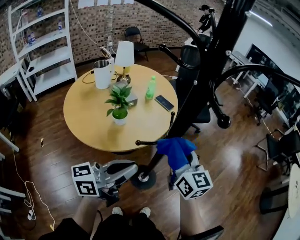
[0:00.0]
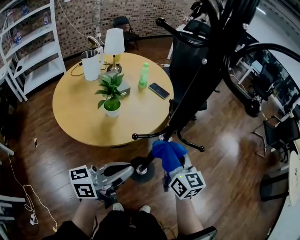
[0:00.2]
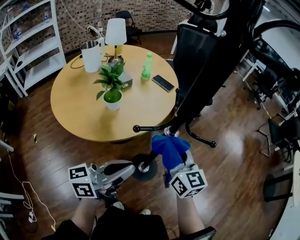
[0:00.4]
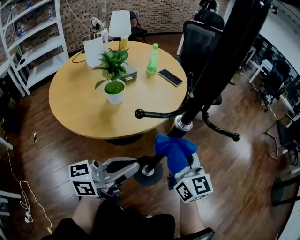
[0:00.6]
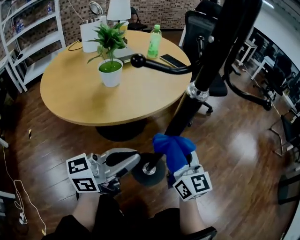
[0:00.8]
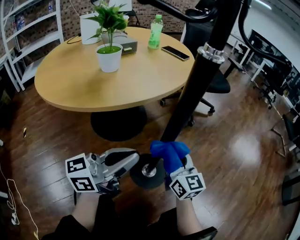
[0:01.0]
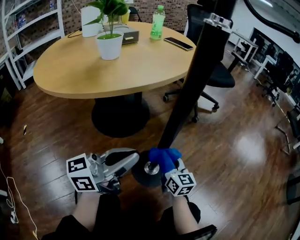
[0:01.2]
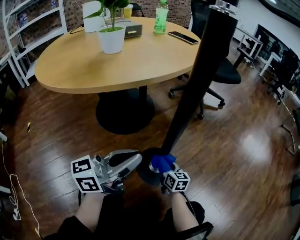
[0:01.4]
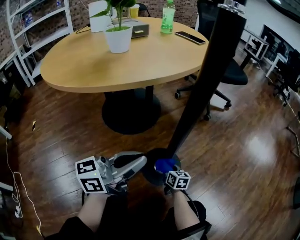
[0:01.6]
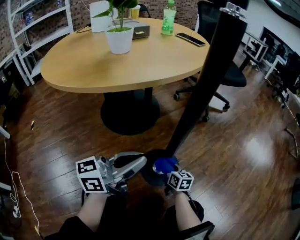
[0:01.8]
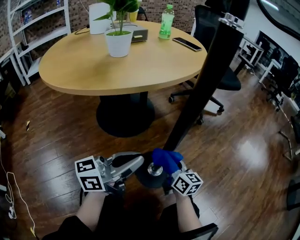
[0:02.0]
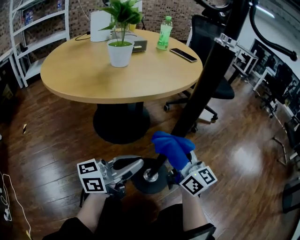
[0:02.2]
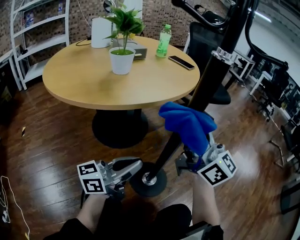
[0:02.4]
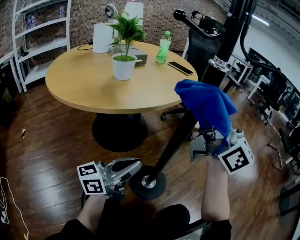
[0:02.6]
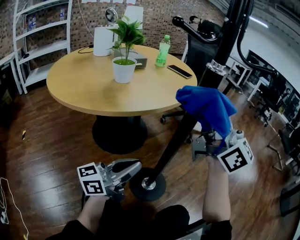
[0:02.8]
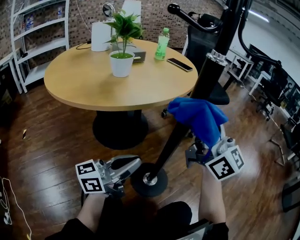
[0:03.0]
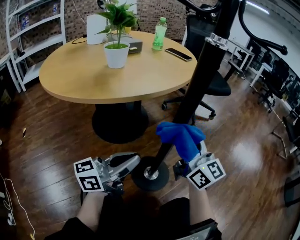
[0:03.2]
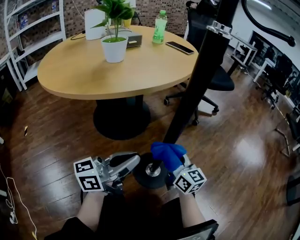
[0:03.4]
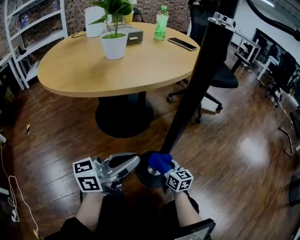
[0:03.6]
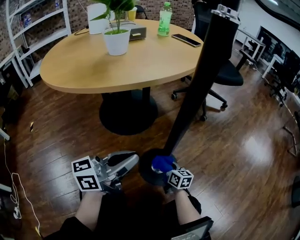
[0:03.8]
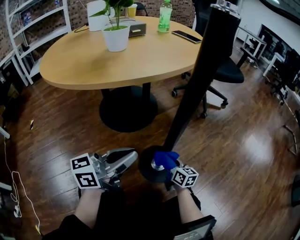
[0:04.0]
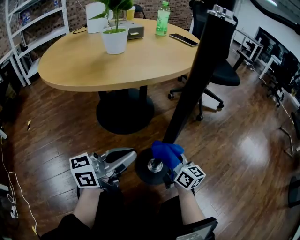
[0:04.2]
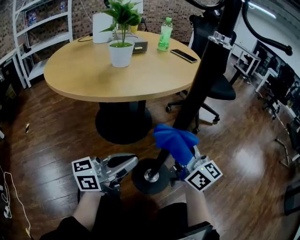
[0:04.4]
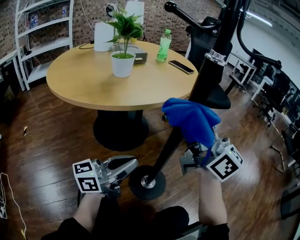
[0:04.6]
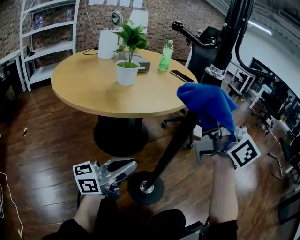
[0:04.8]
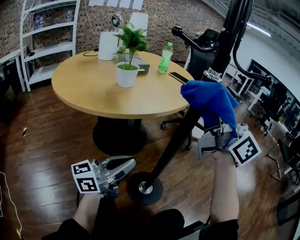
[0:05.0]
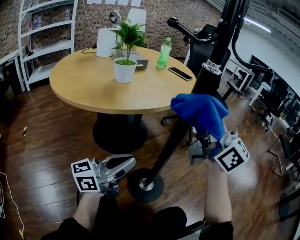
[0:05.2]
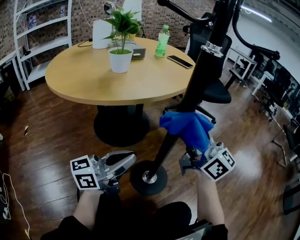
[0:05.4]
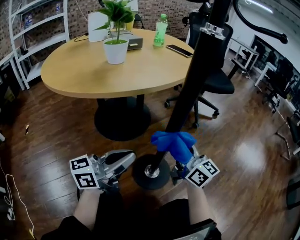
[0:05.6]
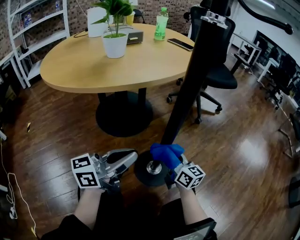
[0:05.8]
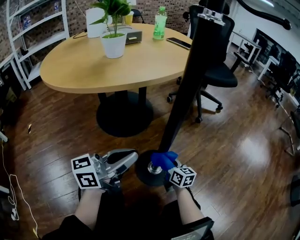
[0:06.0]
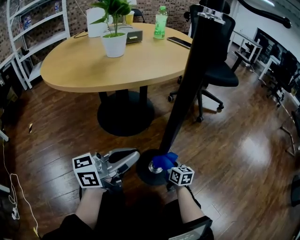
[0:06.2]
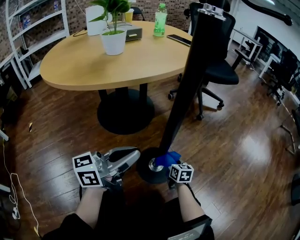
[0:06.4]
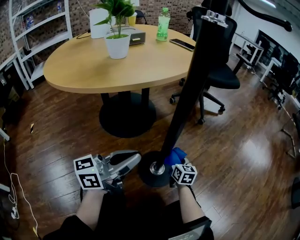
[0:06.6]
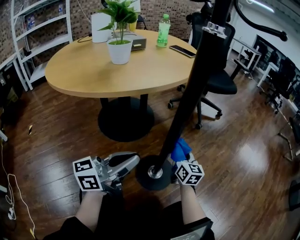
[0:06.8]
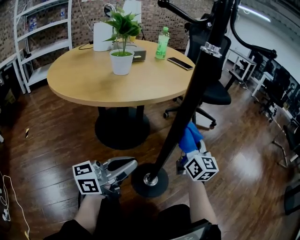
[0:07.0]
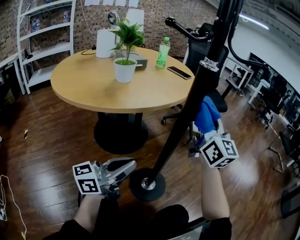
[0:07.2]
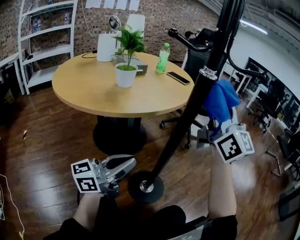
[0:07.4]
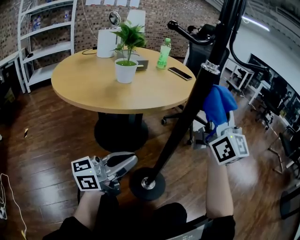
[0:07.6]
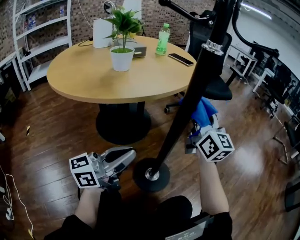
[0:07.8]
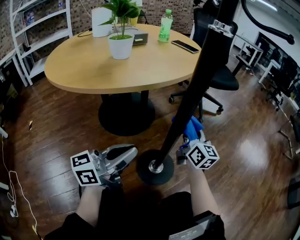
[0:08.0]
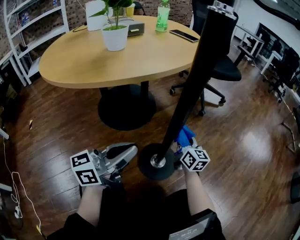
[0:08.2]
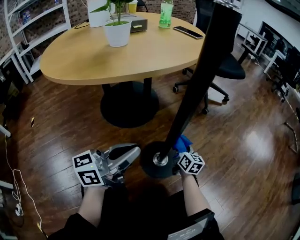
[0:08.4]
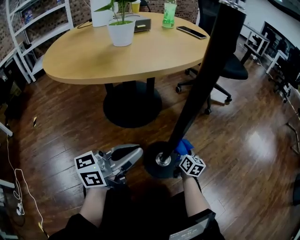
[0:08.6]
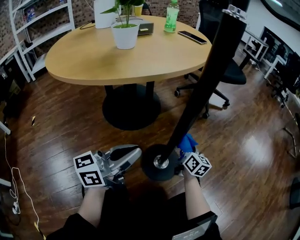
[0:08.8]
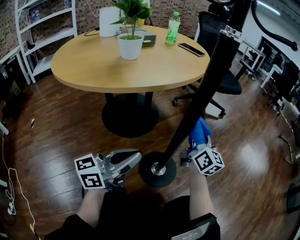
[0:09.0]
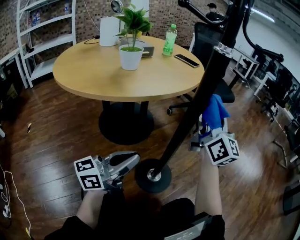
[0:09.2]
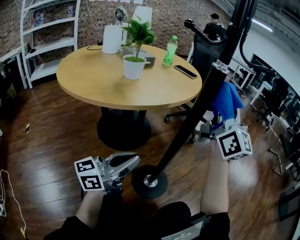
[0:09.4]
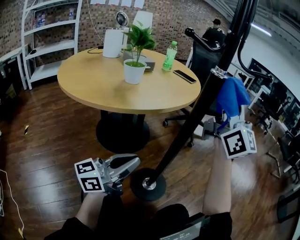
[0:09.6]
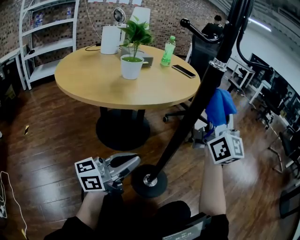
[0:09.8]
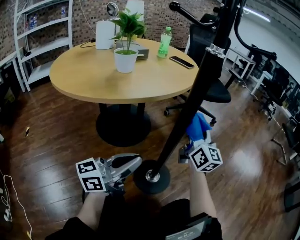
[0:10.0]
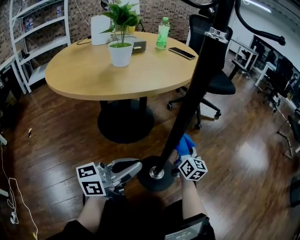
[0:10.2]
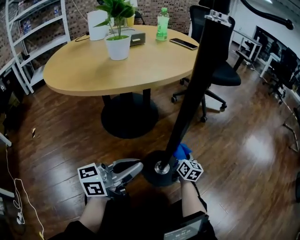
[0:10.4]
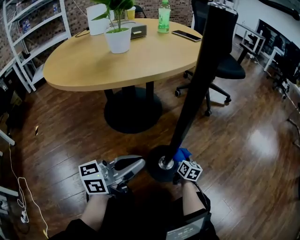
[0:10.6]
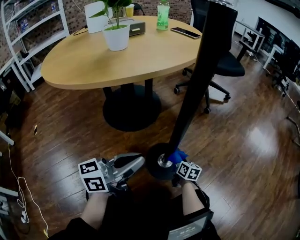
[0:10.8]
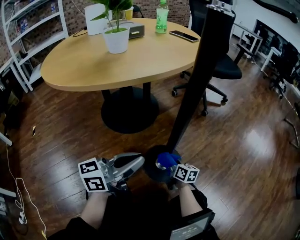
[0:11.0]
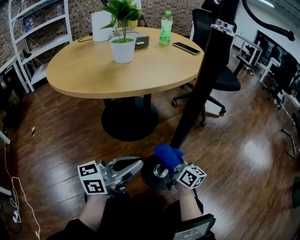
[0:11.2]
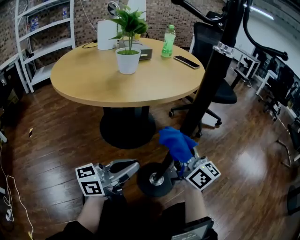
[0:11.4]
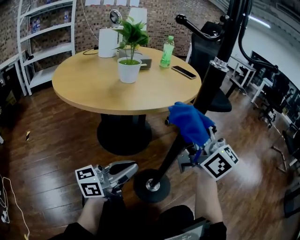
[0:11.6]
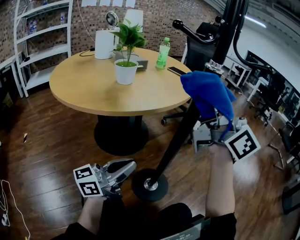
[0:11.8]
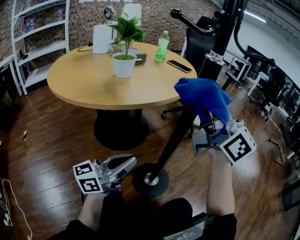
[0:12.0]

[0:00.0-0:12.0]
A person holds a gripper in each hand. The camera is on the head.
0:00.0 to 0:01.6: The right gripper shifts approximately 80 cm downward, and swivels roughly 30 degrees. Meanwhile the left gripper heads downward, covering about 50 cm.
0:01.6 to 0:03.0: The right gripper moves upward, about 60 cm, and tips its fingers upward by some 60 degrees. The left gripper changes place by roughly 5 cm.
0:03.0 to 0:04.4: The right gripper travels downward and back again, approximately 50 cm each way, and rotates about 20 degrees.
0:04.4 to 0:06.0: The right gripper goes roughly 30 cm downward, and rotates roughly 30 degrees.
0:06.0 to 0:07.6: The left gripper moves upward, about 10 cm, while the right gripper goes roughly 50 cm upward, and angles its fingers upward, by about 50 degrees.
0:07.6 to 0:09.0: The left gripper shifts some 5 cm downward. The right gripper travels downward by some 30 cm, and rotates about 30 degrees.
0:09.0 to 0:10.4: The left gripper goes upward and returns, approximately 5 cm each way, while the right gripper is displaced downward by approximately 25 cm, and rotates approximately 30 degrees.
0:10.4 to 0:12.0: The left gripper shifts some 5 cm upward; the right gripper goes up and down, roughly 70 cm each way, reversing 2 times, and angles its fingers upward, by some 40 degrees.

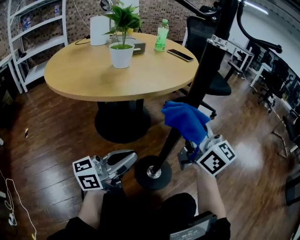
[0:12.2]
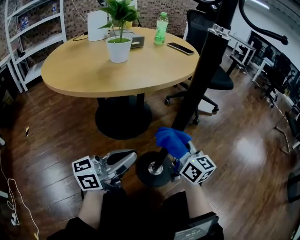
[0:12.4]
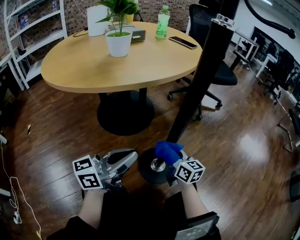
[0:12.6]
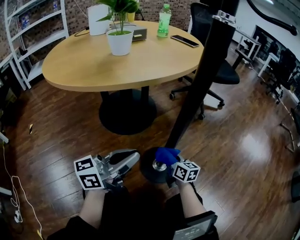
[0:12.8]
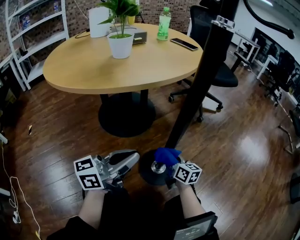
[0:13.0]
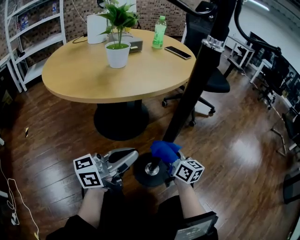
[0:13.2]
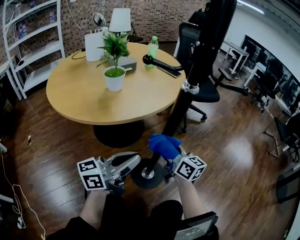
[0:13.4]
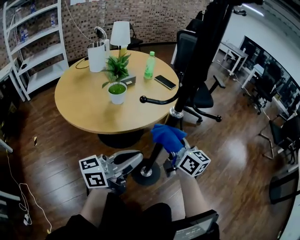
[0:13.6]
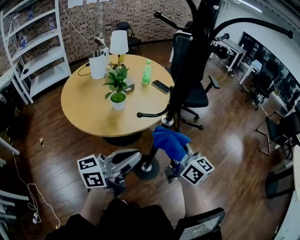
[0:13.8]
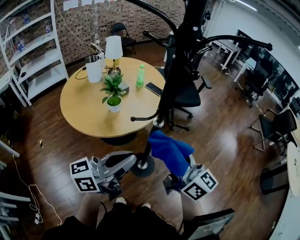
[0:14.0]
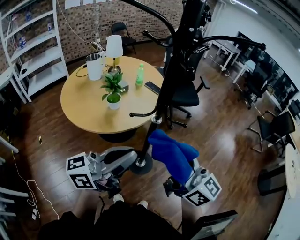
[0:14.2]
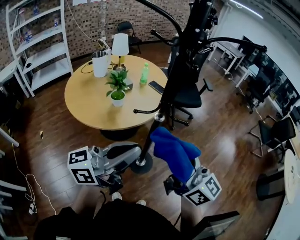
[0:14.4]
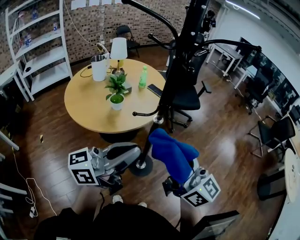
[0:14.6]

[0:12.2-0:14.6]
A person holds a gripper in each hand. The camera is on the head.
0:12.2 to 0:13.4: The left gripper is displaced upward by roughly 15 cm. The right gripper travels downward and back again, approximately 40 cm each way, and turns by roughly 20 degrees.
0:13.4 to 0:14.6: The left gripper shifts about 40 cm upward; the right gripper goes roughly 50 cm upward and backward, and swivels some 20 degrees.

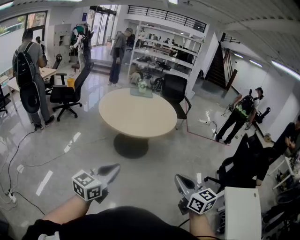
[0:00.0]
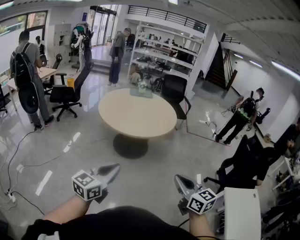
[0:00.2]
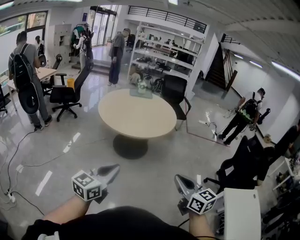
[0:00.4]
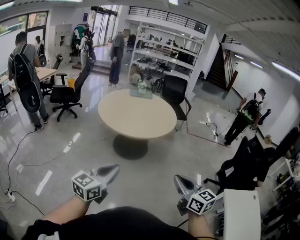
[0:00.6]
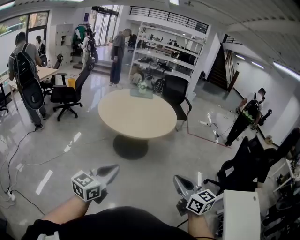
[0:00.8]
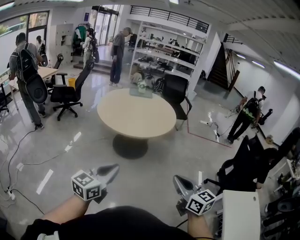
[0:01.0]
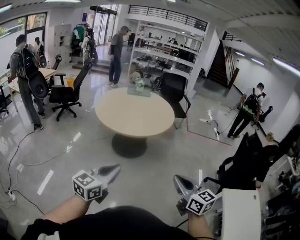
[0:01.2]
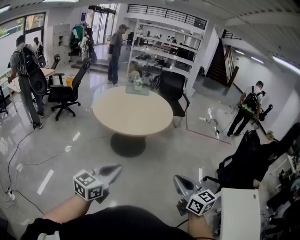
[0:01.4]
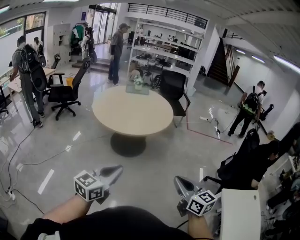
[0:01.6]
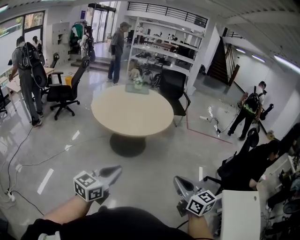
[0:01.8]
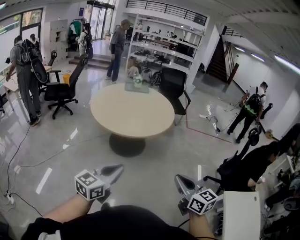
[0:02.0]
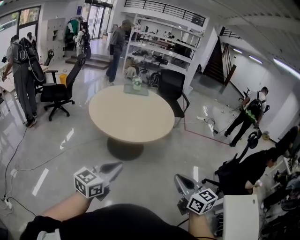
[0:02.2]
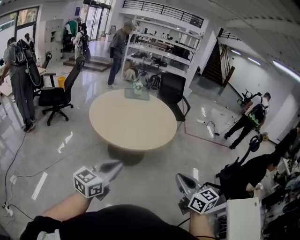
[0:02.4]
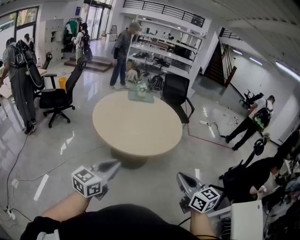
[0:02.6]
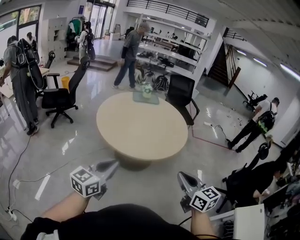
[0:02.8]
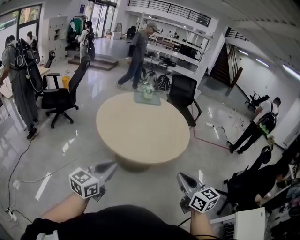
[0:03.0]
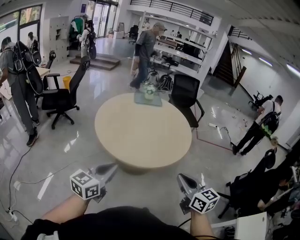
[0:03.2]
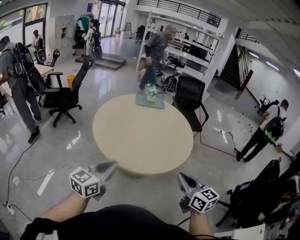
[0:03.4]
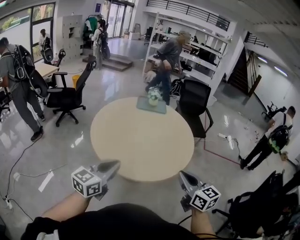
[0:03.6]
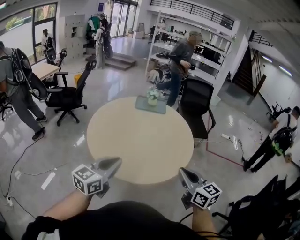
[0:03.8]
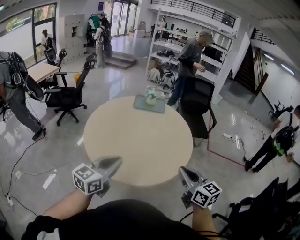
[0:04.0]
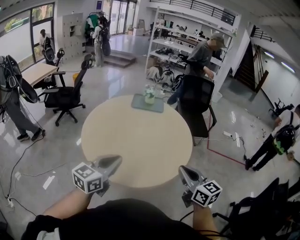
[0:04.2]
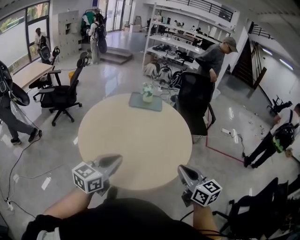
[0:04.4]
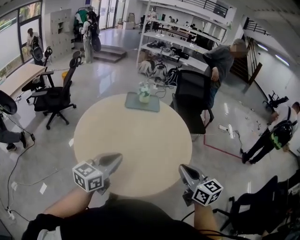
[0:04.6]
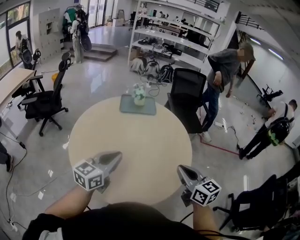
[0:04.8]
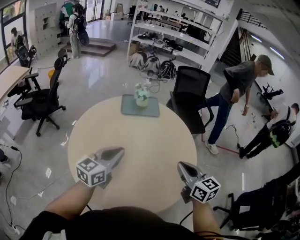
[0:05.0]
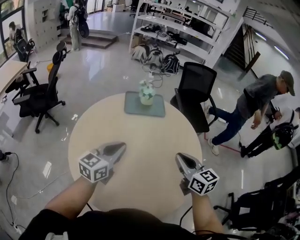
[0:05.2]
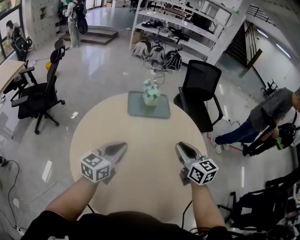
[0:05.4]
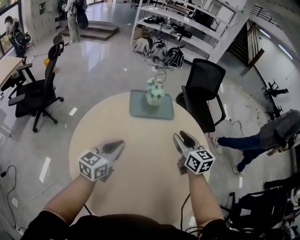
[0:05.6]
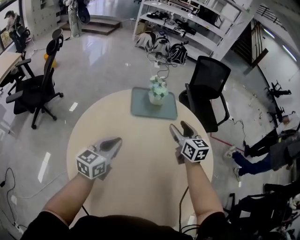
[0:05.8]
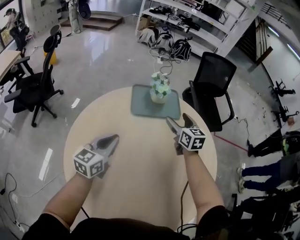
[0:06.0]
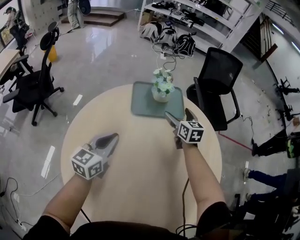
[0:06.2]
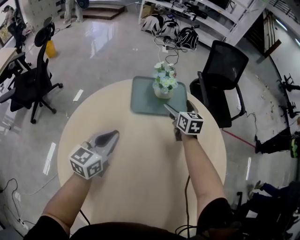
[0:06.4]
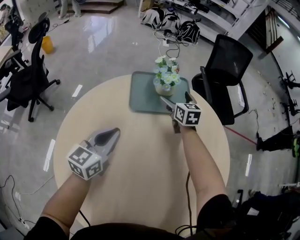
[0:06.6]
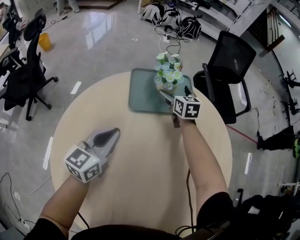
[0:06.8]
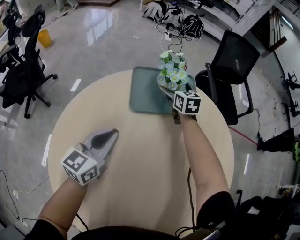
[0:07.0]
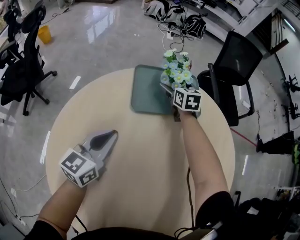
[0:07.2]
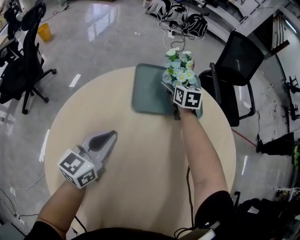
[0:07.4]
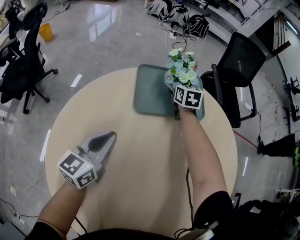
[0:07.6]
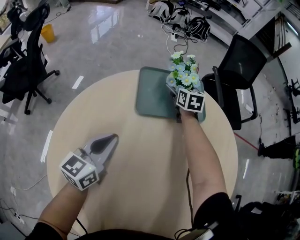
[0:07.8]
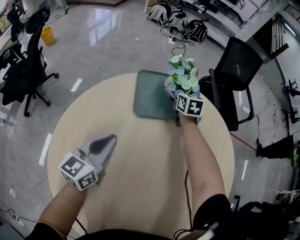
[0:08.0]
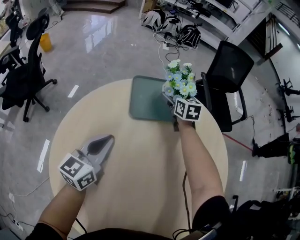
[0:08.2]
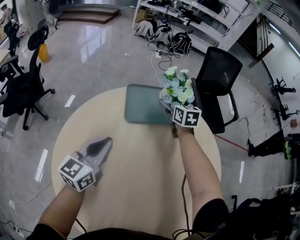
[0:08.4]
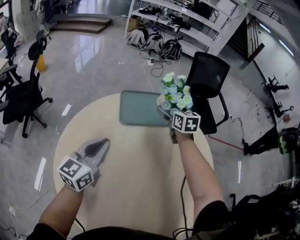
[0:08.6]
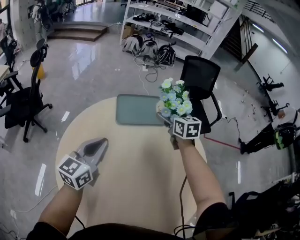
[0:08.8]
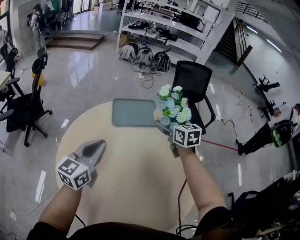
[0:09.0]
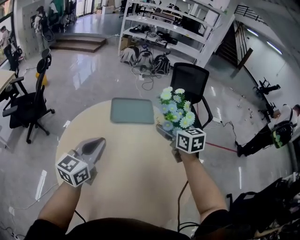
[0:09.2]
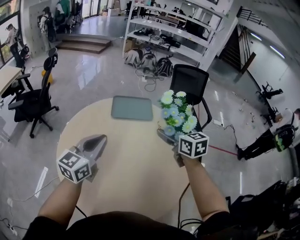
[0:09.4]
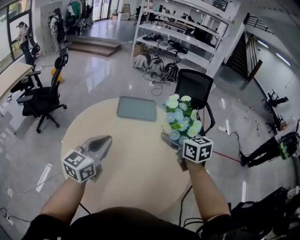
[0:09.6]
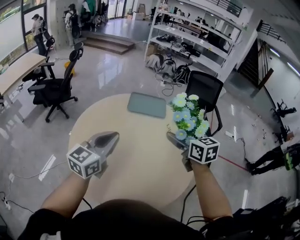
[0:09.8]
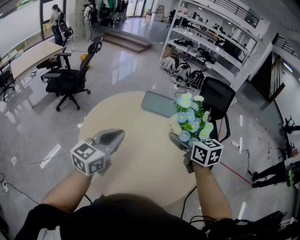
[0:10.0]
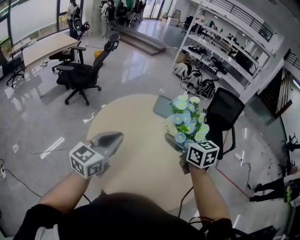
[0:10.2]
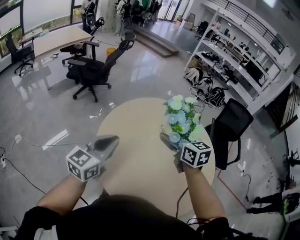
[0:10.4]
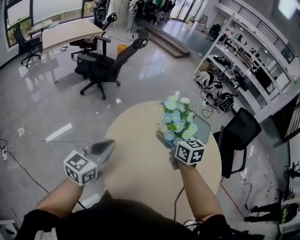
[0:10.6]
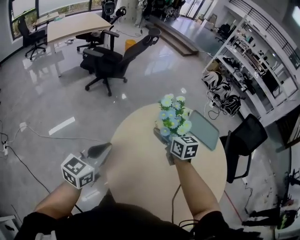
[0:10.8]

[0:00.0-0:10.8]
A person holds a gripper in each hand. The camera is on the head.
0:00.0 to 0:01.6: The two grippers go approximately 10 cm to the right.
0:01.6 to 0:03.0: The two grippers go about 35 cm forward and to the left.
0:03.0 to 0:04.6: The two grippers go some 40 cm forward and to the right.
0:04.6 to 0:06.2: The pair of grippers is taken forward, approximately 60 cm. The right gripper rotates roughly 20 degrees, and opens up. Meanwhile the left gripper travels downward by some 20 cm.
0:06.2 to 0:07.8: The right gripper moves forward and downward, roughly 25 cm; the left gripper is displaced downward and forward by some 10 cm.
0:07.8 to 0:09.2: The left gripper goes roughly 30 cm upward and backward. The right gripper travels backward and upward by some 50 cm.
0:09.2 to 0:10.8: The right gripper moves some 40 cm, and turns by about 40 degrees; the left gripper travels upward and back again, roughly 10 cm each way, and rotates approximately 30 degrees.
